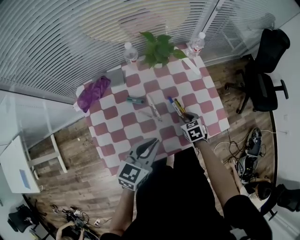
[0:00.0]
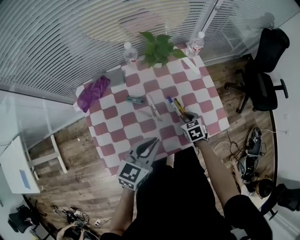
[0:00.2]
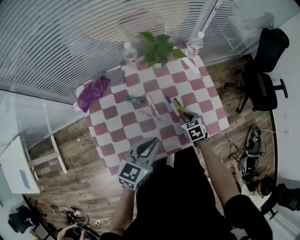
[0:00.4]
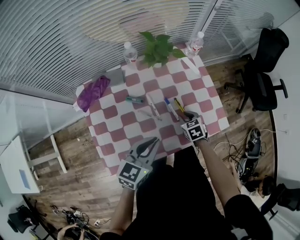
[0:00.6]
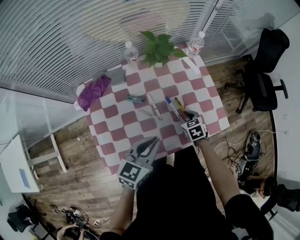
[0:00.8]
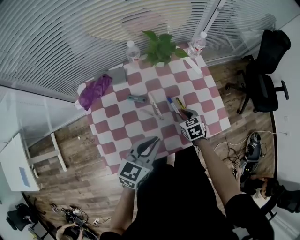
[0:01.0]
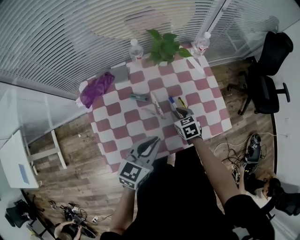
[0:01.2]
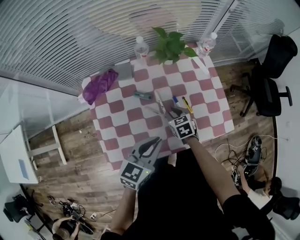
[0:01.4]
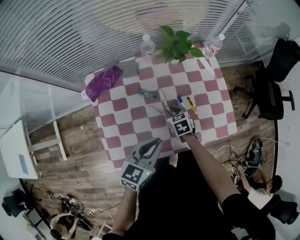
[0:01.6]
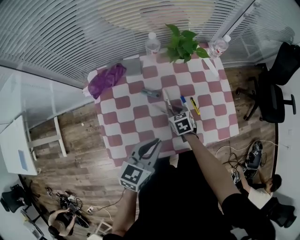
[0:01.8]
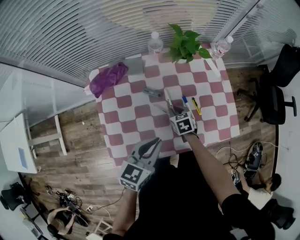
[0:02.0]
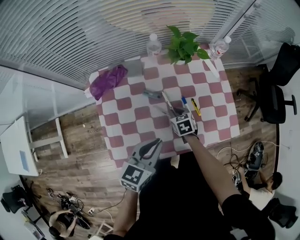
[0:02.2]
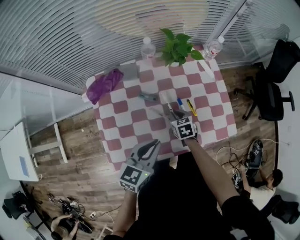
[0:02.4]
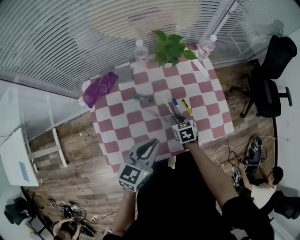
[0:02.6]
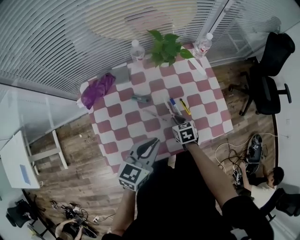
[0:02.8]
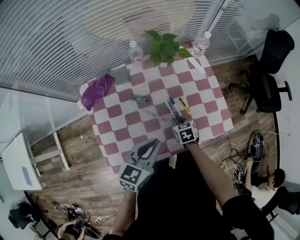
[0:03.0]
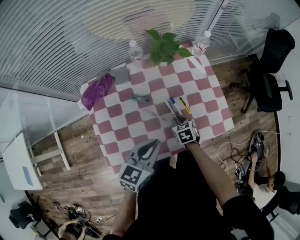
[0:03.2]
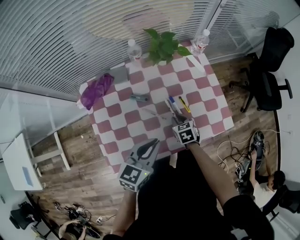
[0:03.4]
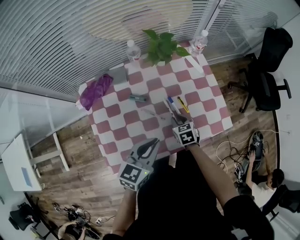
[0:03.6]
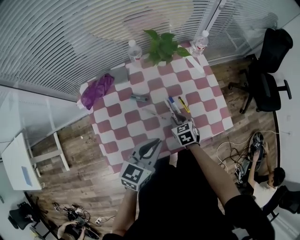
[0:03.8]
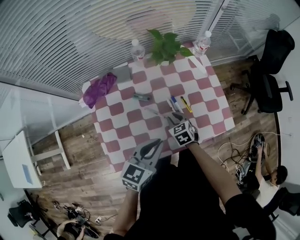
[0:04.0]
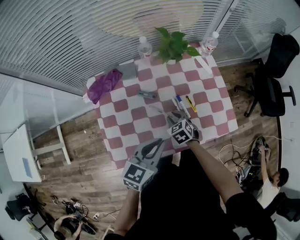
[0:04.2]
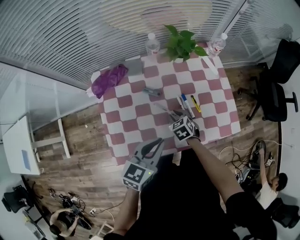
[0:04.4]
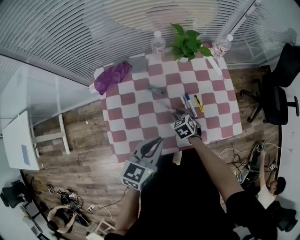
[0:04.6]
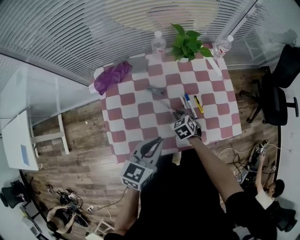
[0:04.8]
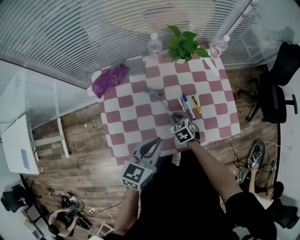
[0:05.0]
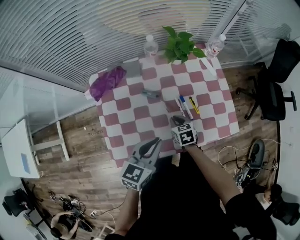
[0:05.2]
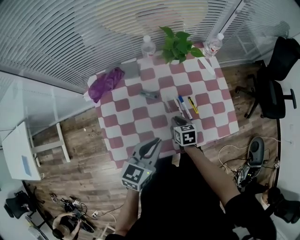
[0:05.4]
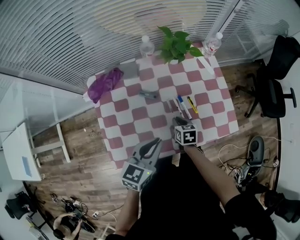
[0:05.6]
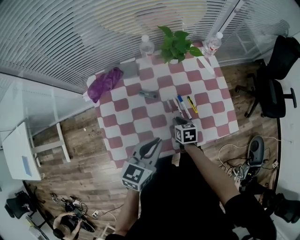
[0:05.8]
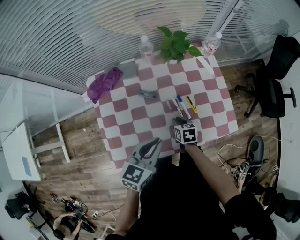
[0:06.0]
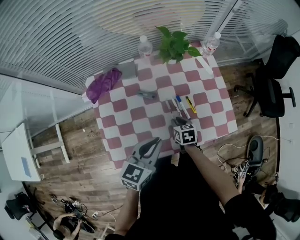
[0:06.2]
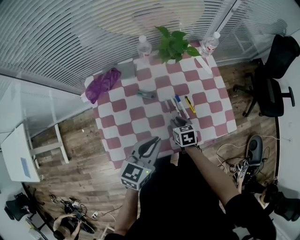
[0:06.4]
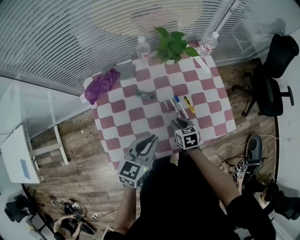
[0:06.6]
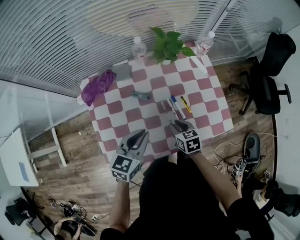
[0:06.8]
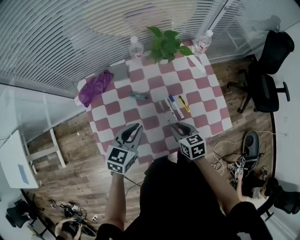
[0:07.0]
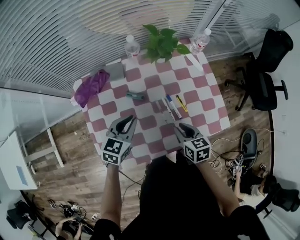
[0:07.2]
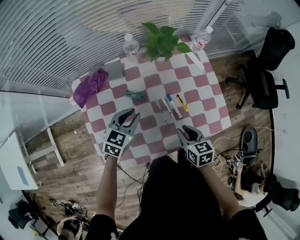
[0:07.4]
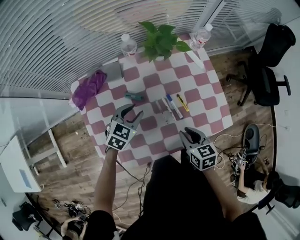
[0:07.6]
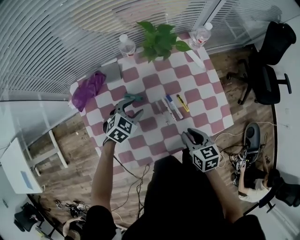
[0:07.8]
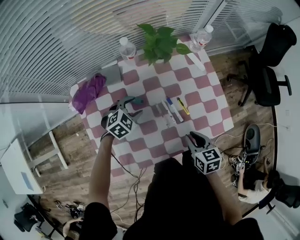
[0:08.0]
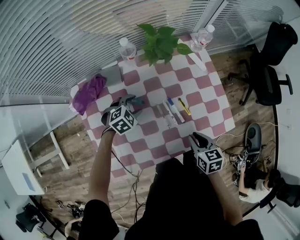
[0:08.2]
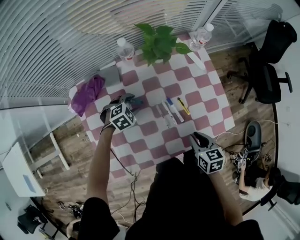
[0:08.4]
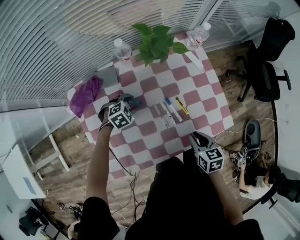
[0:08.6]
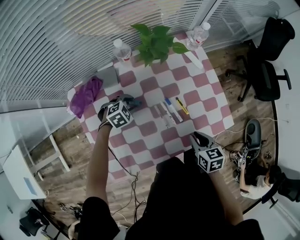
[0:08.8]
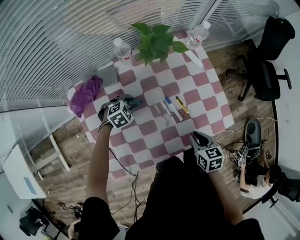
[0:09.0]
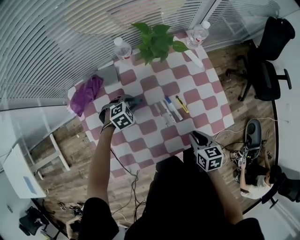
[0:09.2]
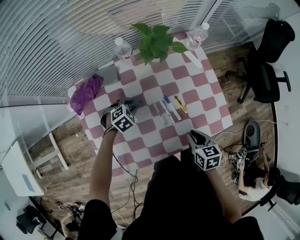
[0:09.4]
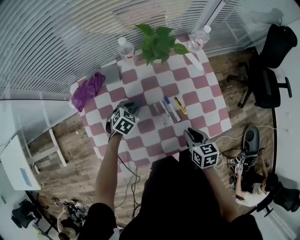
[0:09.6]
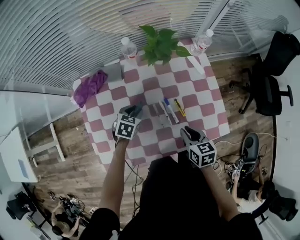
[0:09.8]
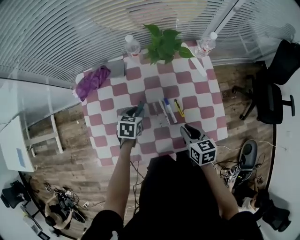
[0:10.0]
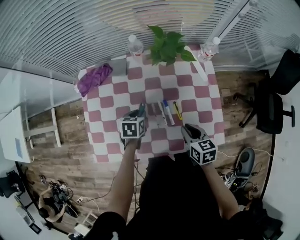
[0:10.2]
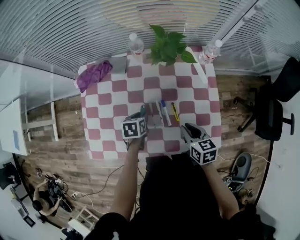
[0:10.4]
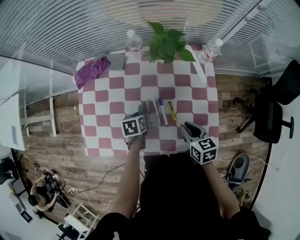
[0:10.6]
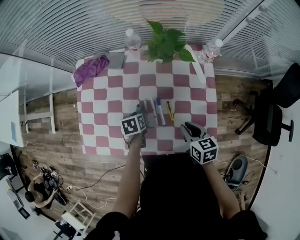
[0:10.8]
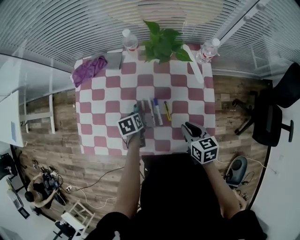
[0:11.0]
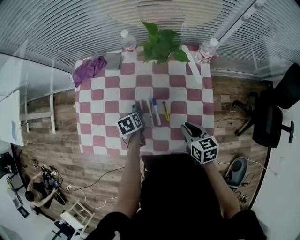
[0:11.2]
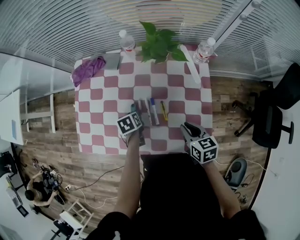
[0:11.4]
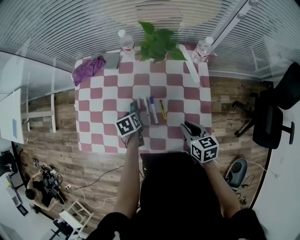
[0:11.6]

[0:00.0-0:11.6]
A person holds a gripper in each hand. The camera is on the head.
0:00.0 to 0:01.4: The right gripper moves to the left, roughly 10 cm.
0:01.4 to 0:02.8: The right gripper ends up approximately 5 cm from where it was.
0:02.8 to 0:04.4: The right gripper travels to the left by about 5 cm, and changes its angle by approximately 20 degrees.
0:04.4 to 0:05.8: The right gripper changes its angle by approximately 30 degrees.
0:05.8 to 0:07.2: The left gripper goes approximately 15 cm forward, downward and to the left, while the right gripper shifts roughly 10 cm upward.
0:07.2 to 0:08.8: The right gripper goes about 5 cm to the right, while the left gripper heads downward and forward, covering approximately 20 cm, tips its fingers downward by about 30 degrees, and opens.
0:08.8 to 0:10.2: The left gripper moves about 10 cm, and rolls counterclockwise, seen from behind, by roughly 70 degrees. Meanwhile the right gripper shifts by roughly 5 cm.
0:10.2 to 0:11.6: The right gripper is displaced to the right by some 10 cm. Meanwhile the left gripper turns by some 30 degrees.

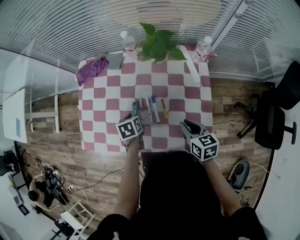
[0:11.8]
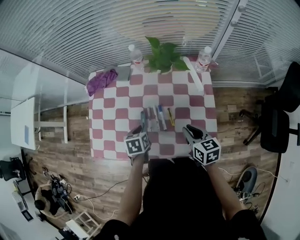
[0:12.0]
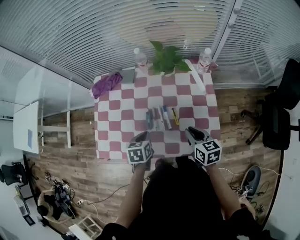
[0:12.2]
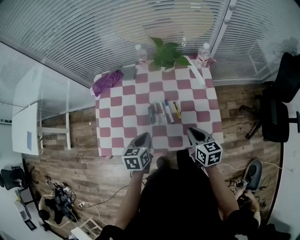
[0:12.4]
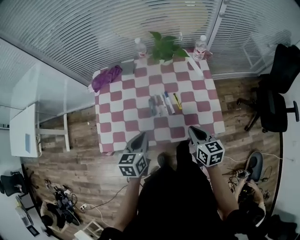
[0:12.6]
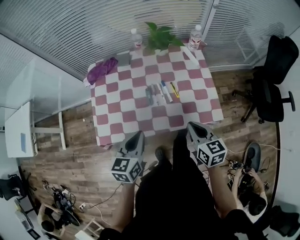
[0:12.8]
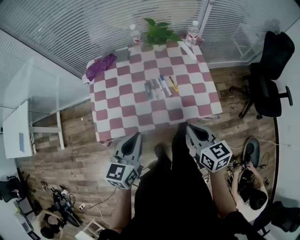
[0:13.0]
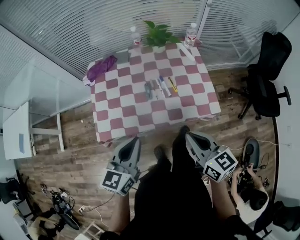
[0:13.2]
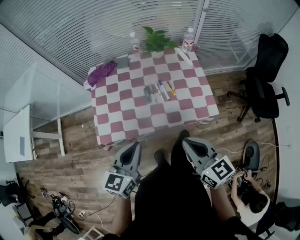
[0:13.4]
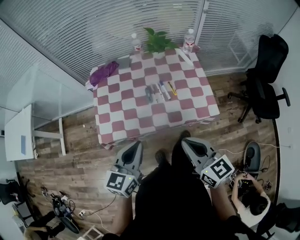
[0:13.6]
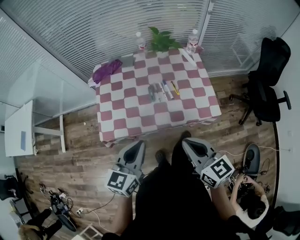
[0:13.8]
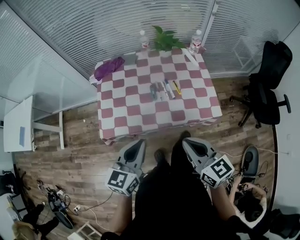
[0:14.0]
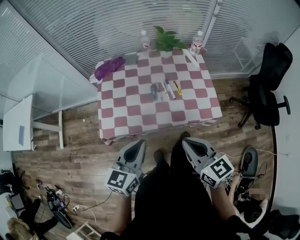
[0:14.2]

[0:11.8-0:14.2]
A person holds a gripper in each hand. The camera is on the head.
0:11.8 to 0:13.0: The right gripper travels backward, upward and to the left by some 25 cm. The left gripper moves upward and backward, some 30 cm, points its fingers some 40 degrees further upward, and closes up.
0:13.0 to 0:14.2: The right gripper moves upward, backward and to the left, about 10 cm, while the left gripper goes roughly 5 cm backward.

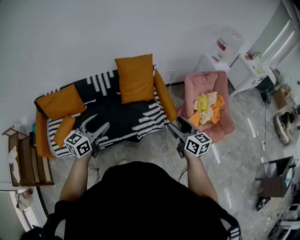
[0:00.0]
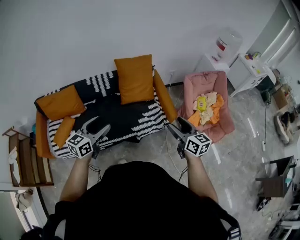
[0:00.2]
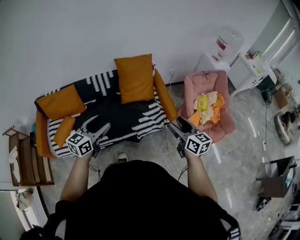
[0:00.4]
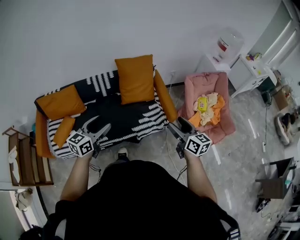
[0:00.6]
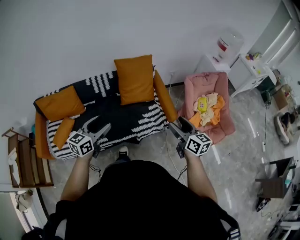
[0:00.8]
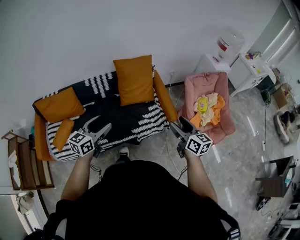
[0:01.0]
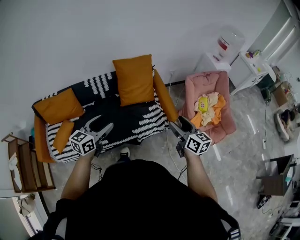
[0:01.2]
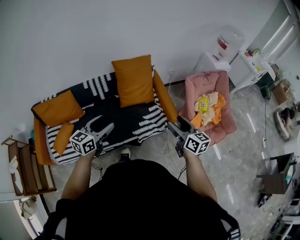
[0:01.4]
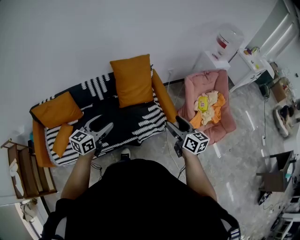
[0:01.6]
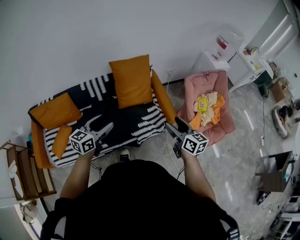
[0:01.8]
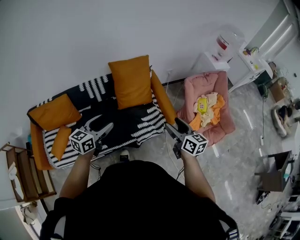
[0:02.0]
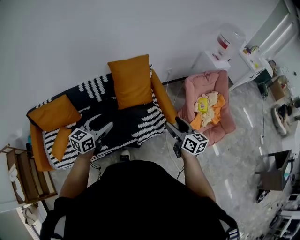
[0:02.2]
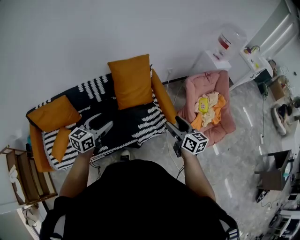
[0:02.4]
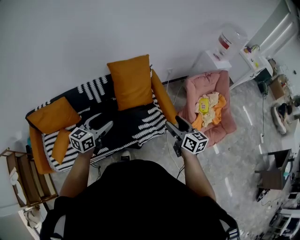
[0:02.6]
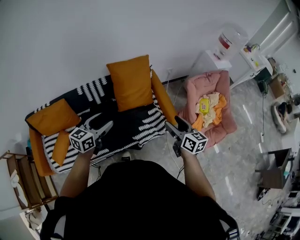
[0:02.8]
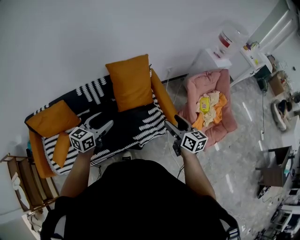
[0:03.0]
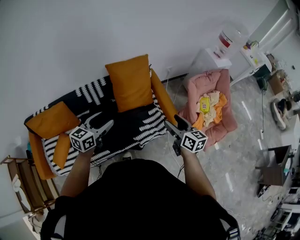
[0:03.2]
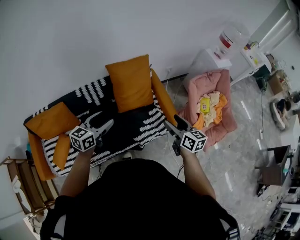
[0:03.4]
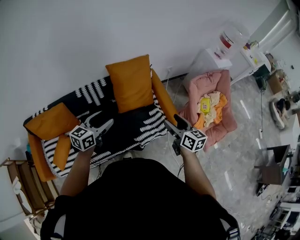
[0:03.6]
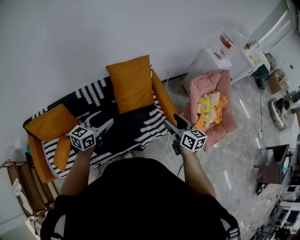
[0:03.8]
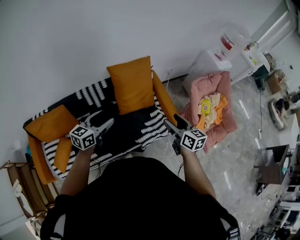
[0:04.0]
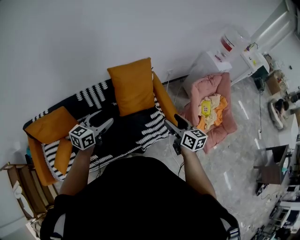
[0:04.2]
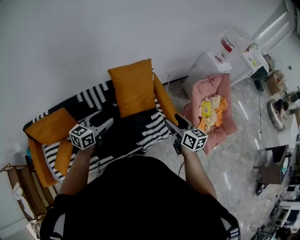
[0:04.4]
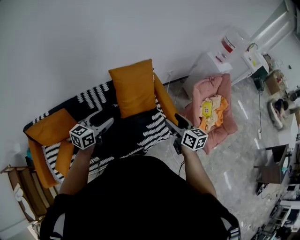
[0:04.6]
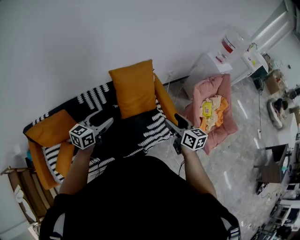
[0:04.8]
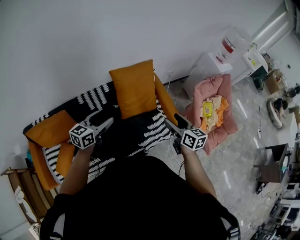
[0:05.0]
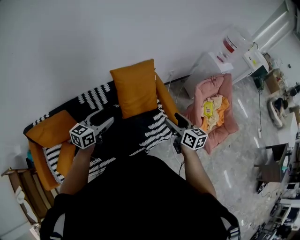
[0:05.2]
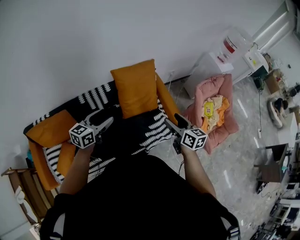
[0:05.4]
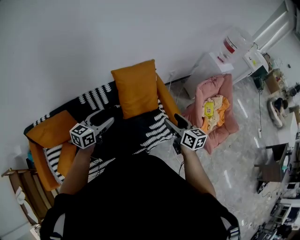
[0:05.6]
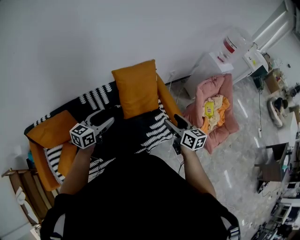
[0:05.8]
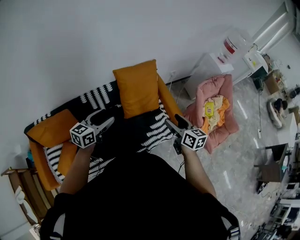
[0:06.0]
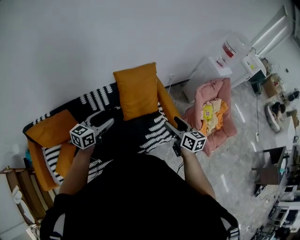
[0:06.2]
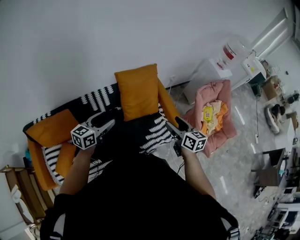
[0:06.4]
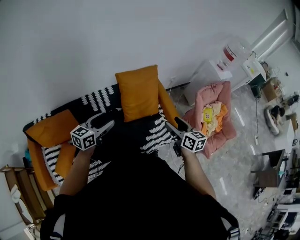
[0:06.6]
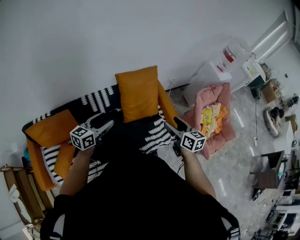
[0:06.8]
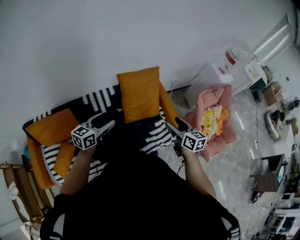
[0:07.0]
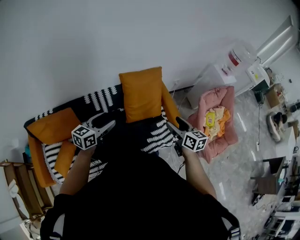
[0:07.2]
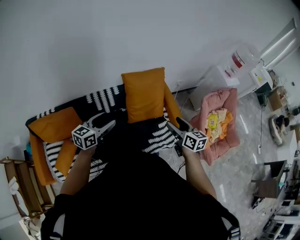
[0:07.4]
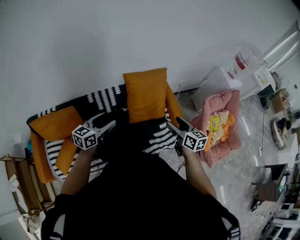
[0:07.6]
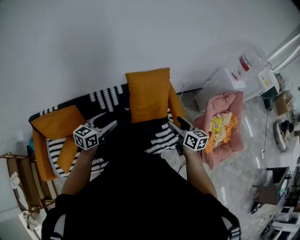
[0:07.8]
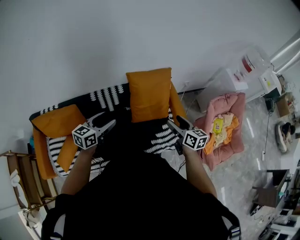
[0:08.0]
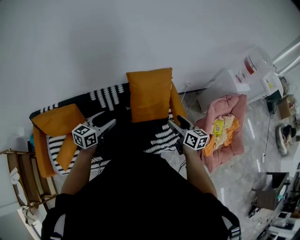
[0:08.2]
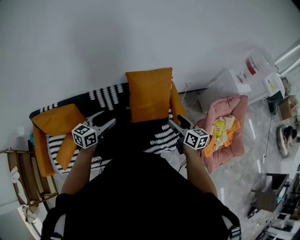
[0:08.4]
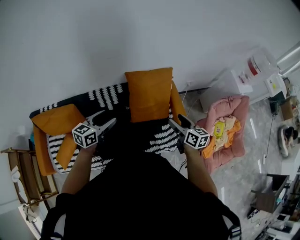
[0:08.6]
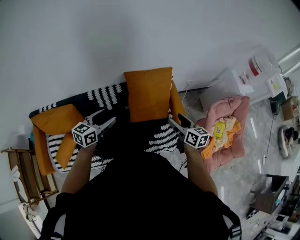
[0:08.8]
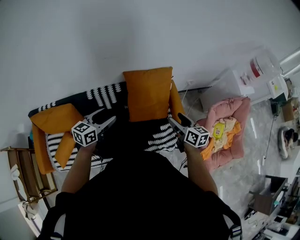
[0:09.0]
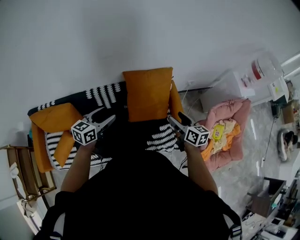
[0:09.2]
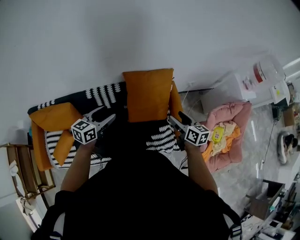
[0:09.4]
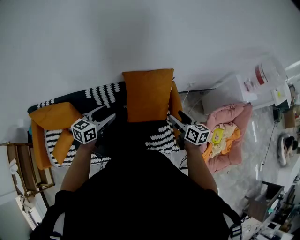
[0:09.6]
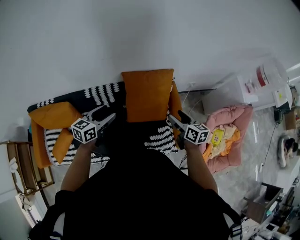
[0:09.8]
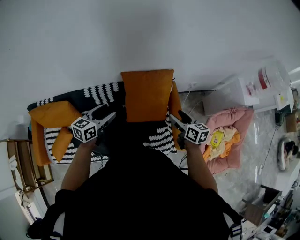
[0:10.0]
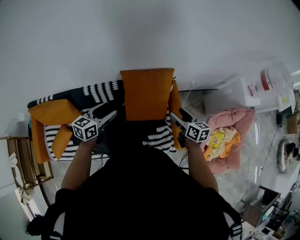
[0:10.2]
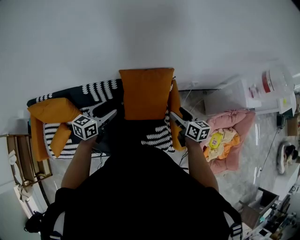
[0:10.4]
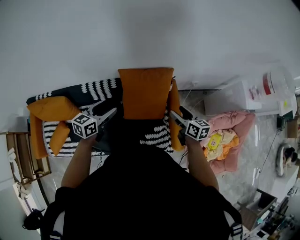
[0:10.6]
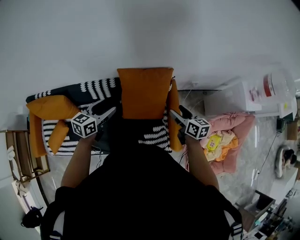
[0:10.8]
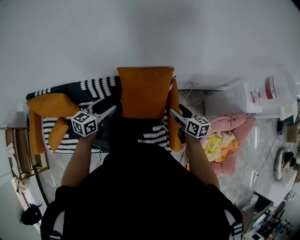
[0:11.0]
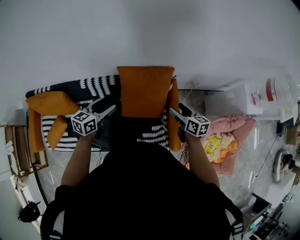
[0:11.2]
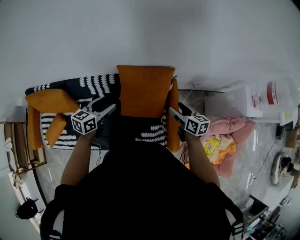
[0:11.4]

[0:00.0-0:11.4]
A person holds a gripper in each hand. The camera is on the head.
0:00.0 to 0:01.4: The grippers both shift forward by some 5 cm.
0:01.4 to 0:02.8: Both grippers move forward, some 10 cm.
0:02.8 to 0:04.2: Both grippers travel together forward and to the left, some 10 cm.
0:04.2 to 0:05.6: The right gripper changes place by about 5 cm. Meanwhile the left gripper moves approximately 5 cm.
0:05.6 to 0:07.2: The grippers move only a little.
0:07.2 to 0:08.6: The right gripper is displaced forward by roughly 10 cm, while the left gripper goes approximately 5 cm forward.
0:08.6 to 0:10.0: Both grippers travel together forward and to the right, some 10 cm.
0:10.0 to 0:11.4: The left gripper is displaced to the right by approximately 5 cm, while the right gripper goes about 10 cm forward and to the right.
